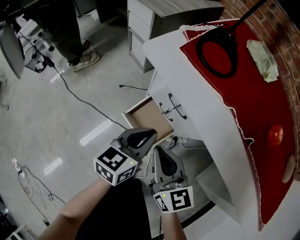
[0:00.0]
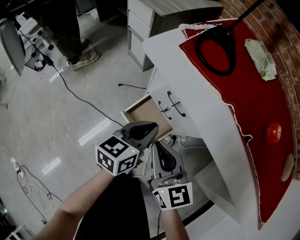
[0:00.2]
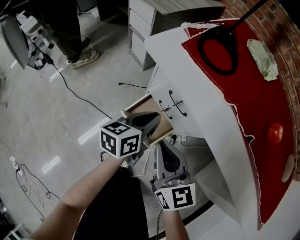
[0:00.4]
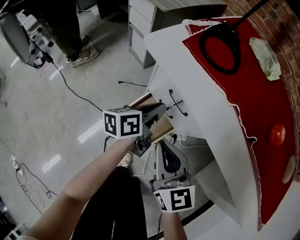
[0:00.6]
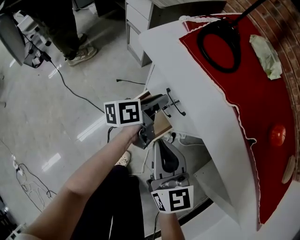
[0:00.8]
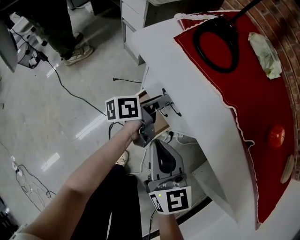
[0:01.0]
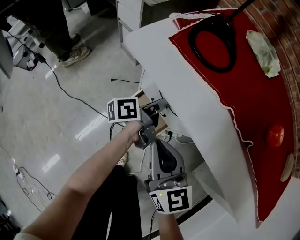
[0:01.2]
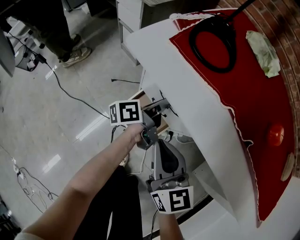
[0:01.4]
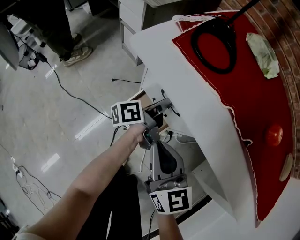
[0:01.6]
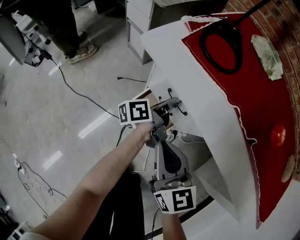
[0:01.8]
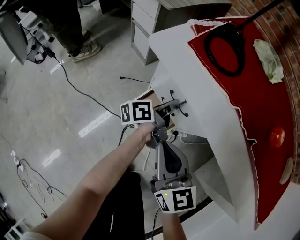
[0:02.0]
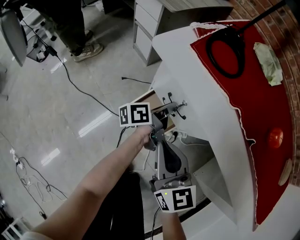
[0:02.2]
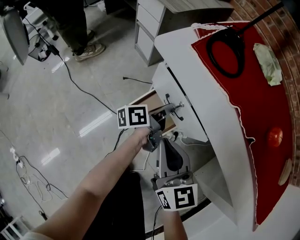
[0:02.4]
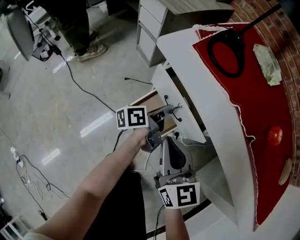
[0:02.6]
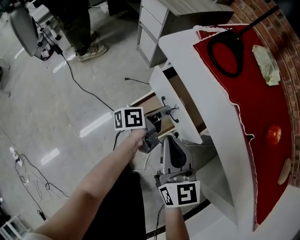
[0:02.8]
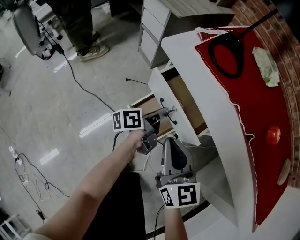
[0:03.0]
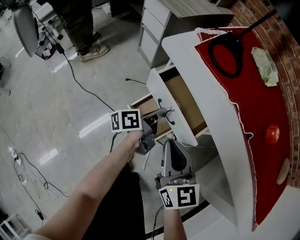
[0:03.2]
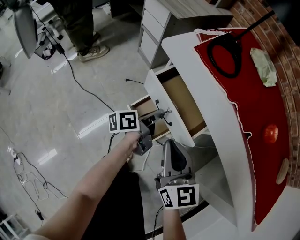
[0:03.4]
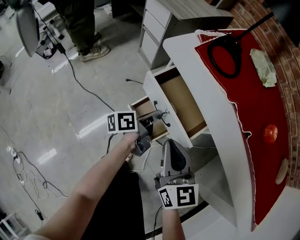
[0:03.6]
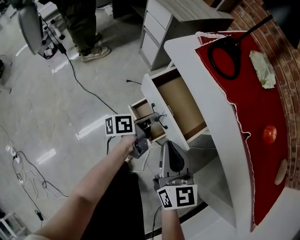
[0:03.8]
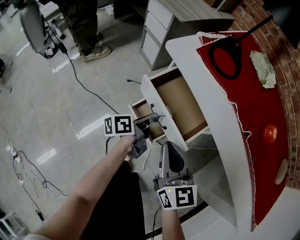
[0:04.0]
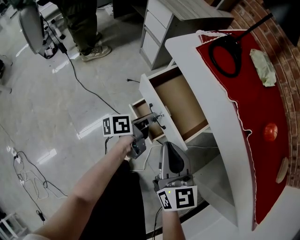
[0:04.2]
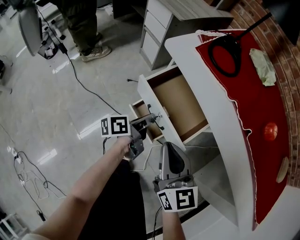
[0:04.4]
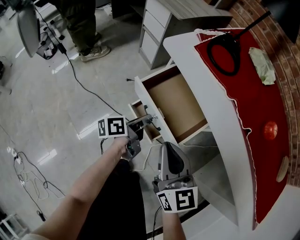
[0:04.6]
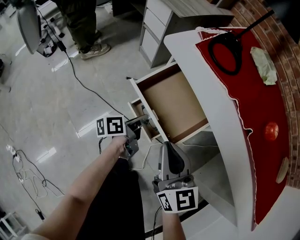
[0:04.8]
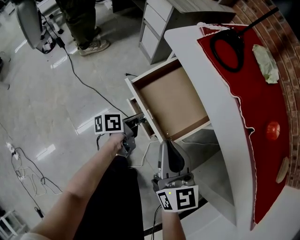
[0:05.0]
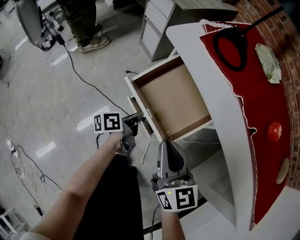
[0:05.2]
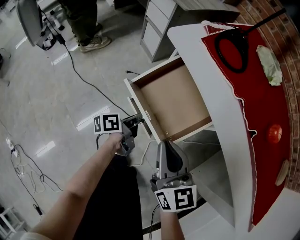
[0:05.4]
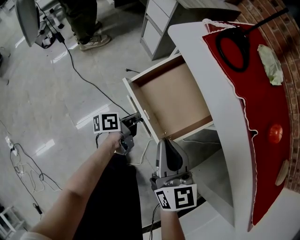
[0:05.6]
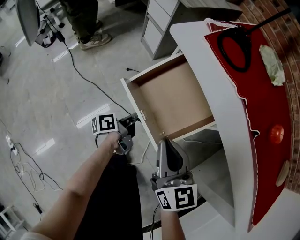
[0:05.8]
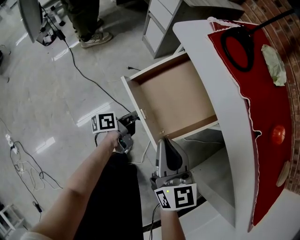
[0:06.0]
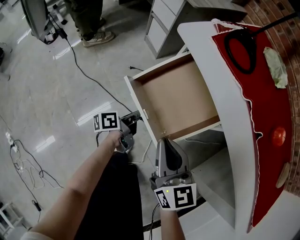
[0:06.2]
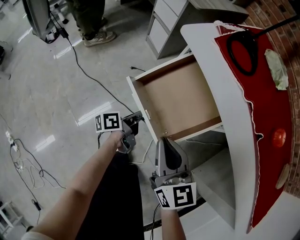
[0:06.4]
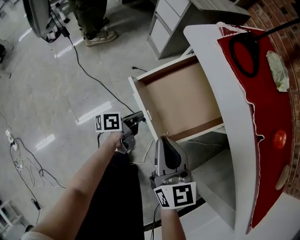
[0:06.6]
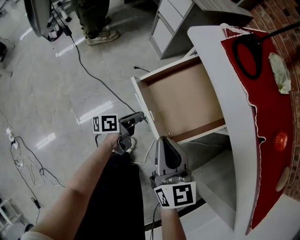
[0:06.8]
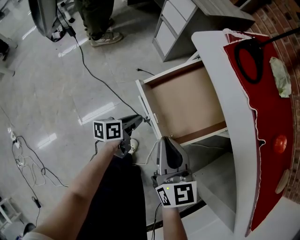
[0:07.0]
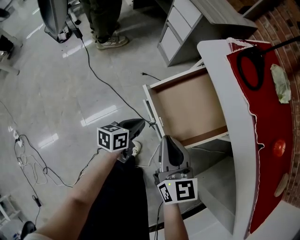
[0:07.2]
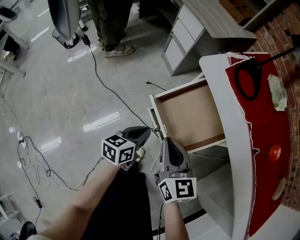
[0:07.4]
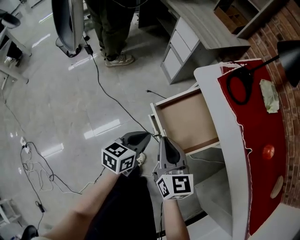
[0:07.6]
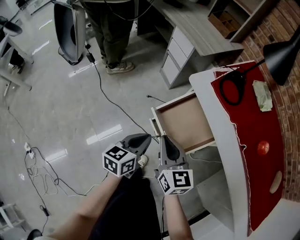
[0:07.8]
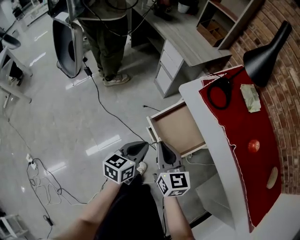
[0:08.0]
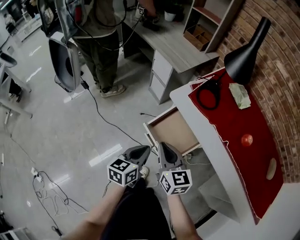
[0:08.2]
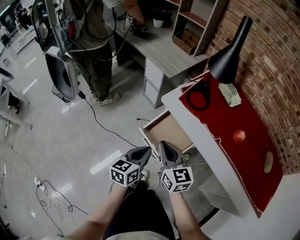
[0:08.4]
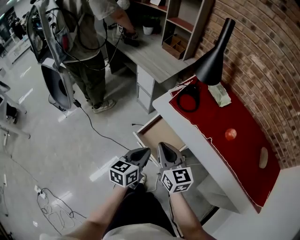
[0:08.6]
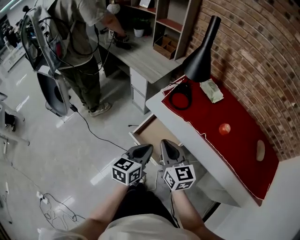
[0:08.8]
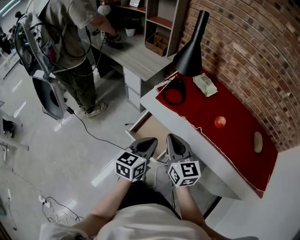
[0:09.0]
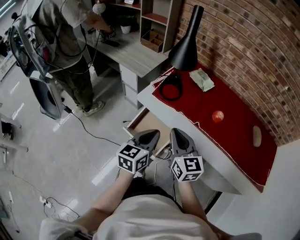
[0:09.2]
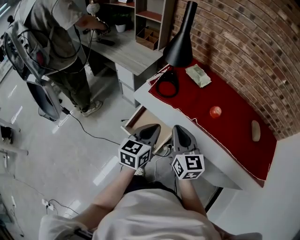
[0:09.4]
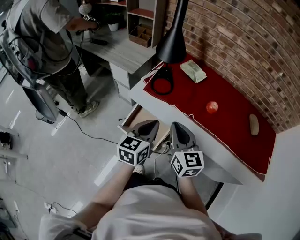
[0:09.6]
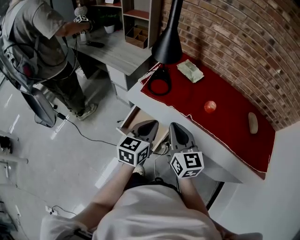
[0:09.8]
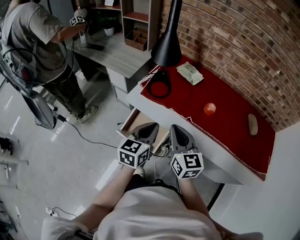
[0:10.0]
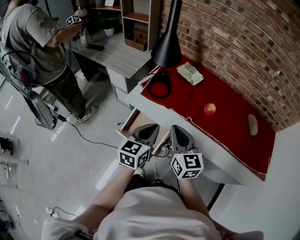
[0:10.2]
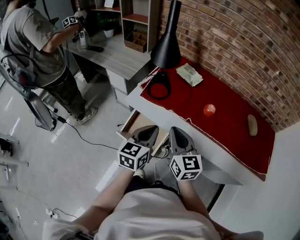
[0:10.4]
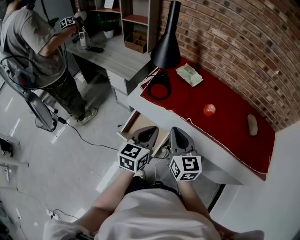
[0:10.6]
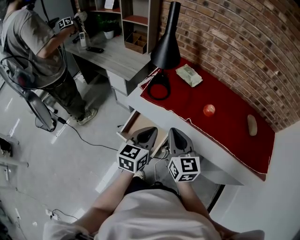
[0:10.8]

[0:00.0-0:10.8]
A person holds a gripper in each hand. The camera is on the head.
0:00.0 to 0:01.6: The left gripper goes about 15 cm forward and downward, rolls counterclockwise, seen from behind, by about 50 degrees, and opens, then closes once more.
0:01.6 to 0:03.0: The left gripper travels backward by approximately 5 cm.
0:03.0 to 0:04.6: The left gripper is displaced backward by approximately 5 cm.
0:04.6 to 0:06.2: The left gripper travels downward by approximately 10 cm.
0:06.2 to 0:07.8: The left gripper moves upward, roughly 20 cm, and twists some 50 degrees clockwise, seen from behind. The right gripper goes roughly 10 cm to the left and upward.
0:07.8 to 0:09.2: The two grippers go about 25 cm upward and to the right. The left gripper turns by about 20 degrees, while the right gripper rotates some 20 degrees.
0:09.2 to 0:10.8: The grippers stay close to where they were, moving slightly.

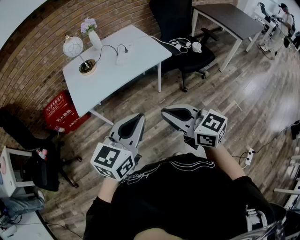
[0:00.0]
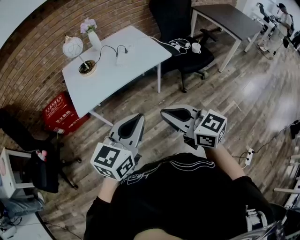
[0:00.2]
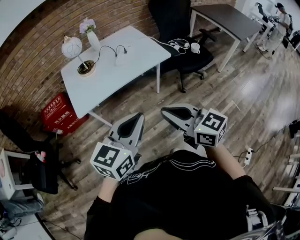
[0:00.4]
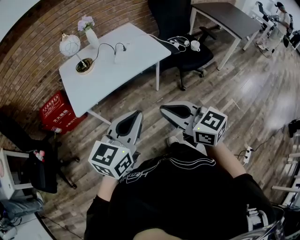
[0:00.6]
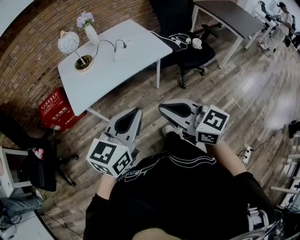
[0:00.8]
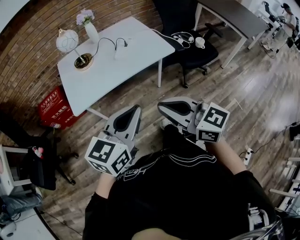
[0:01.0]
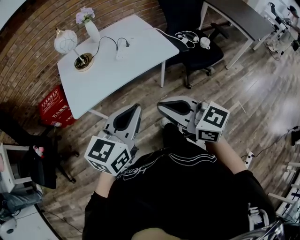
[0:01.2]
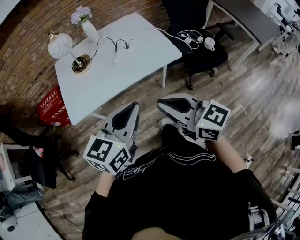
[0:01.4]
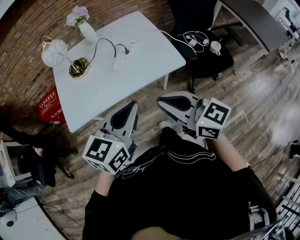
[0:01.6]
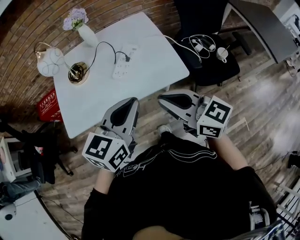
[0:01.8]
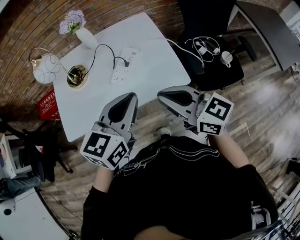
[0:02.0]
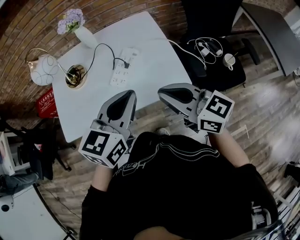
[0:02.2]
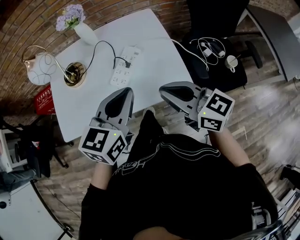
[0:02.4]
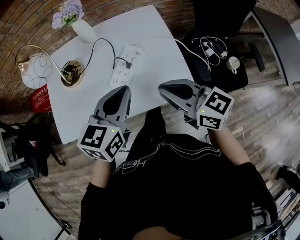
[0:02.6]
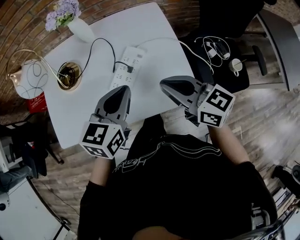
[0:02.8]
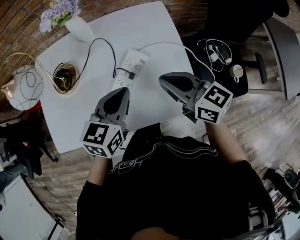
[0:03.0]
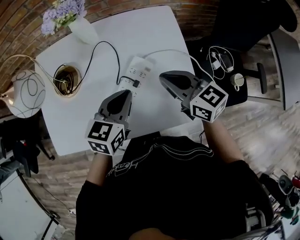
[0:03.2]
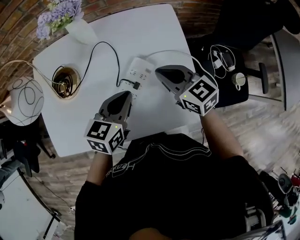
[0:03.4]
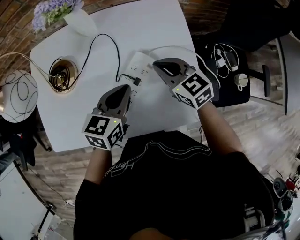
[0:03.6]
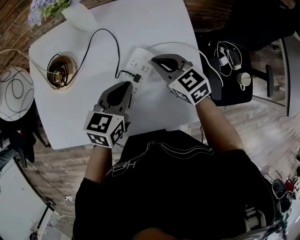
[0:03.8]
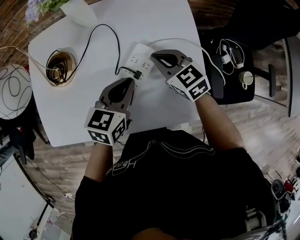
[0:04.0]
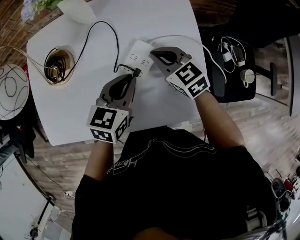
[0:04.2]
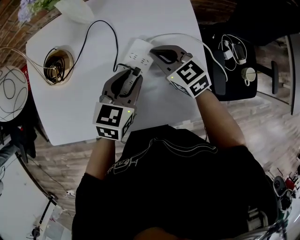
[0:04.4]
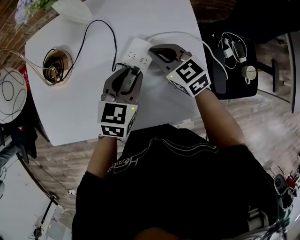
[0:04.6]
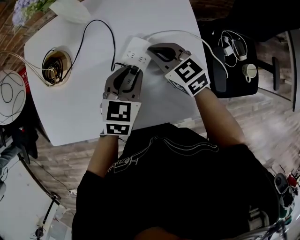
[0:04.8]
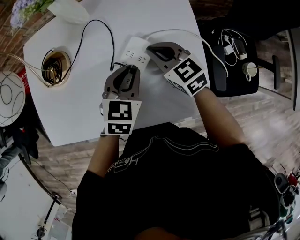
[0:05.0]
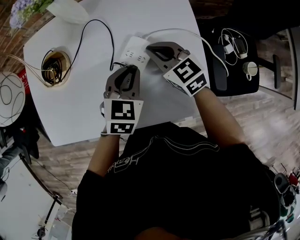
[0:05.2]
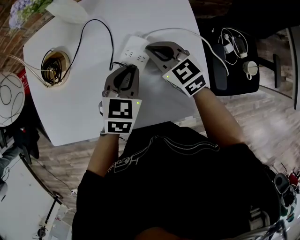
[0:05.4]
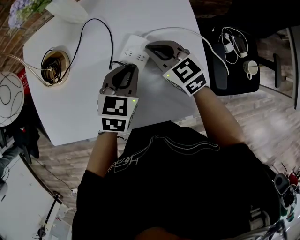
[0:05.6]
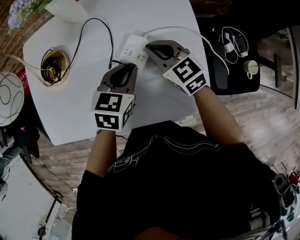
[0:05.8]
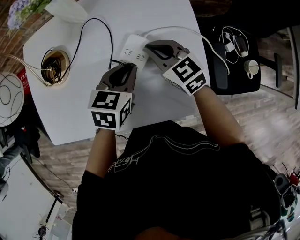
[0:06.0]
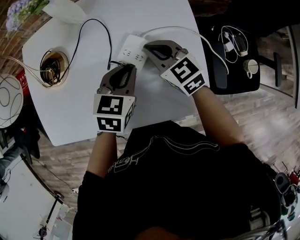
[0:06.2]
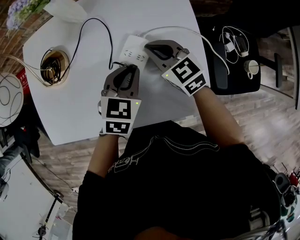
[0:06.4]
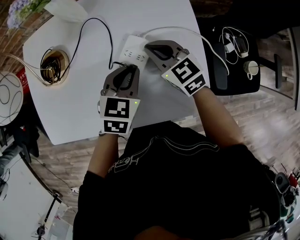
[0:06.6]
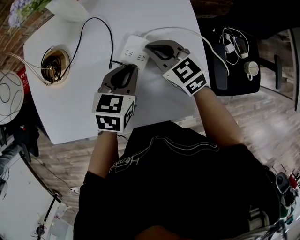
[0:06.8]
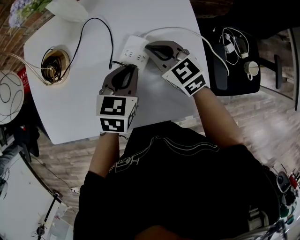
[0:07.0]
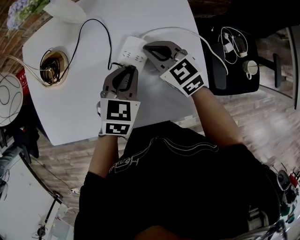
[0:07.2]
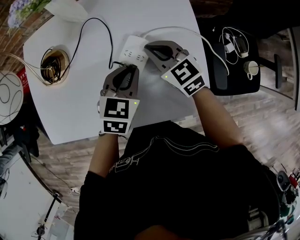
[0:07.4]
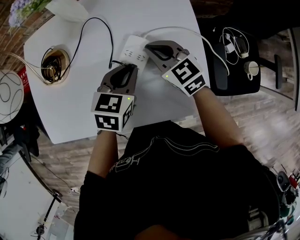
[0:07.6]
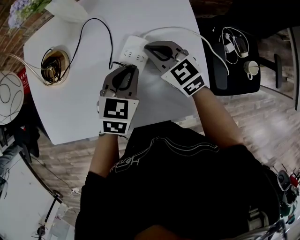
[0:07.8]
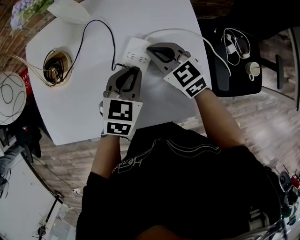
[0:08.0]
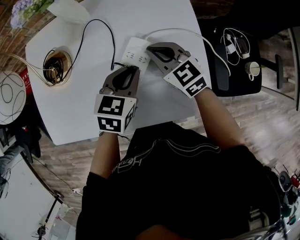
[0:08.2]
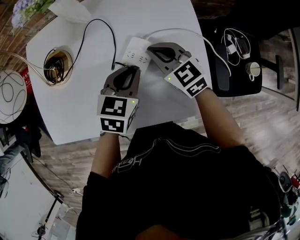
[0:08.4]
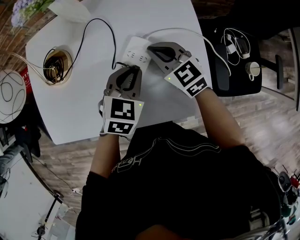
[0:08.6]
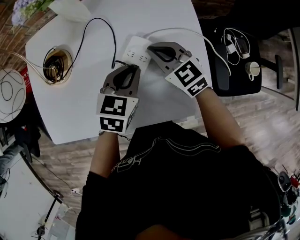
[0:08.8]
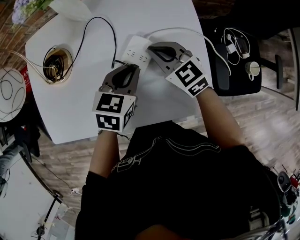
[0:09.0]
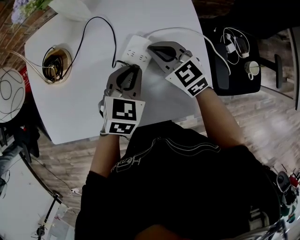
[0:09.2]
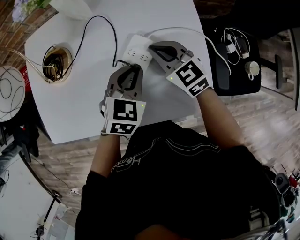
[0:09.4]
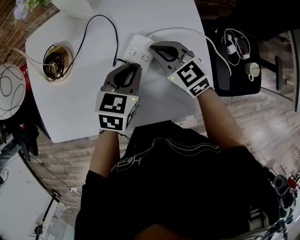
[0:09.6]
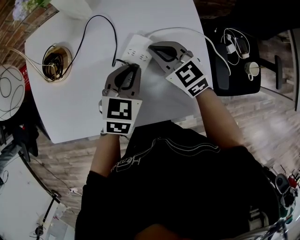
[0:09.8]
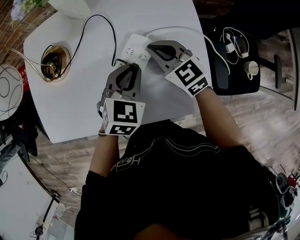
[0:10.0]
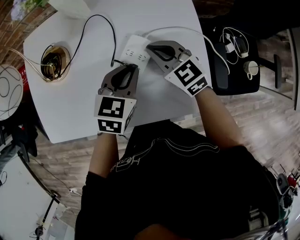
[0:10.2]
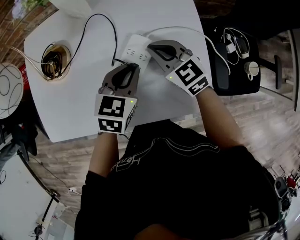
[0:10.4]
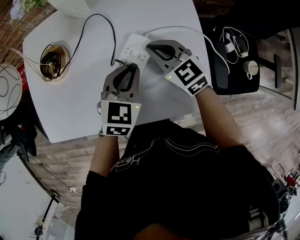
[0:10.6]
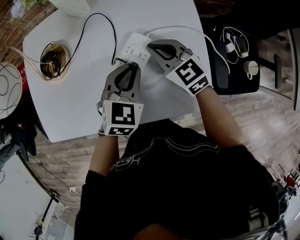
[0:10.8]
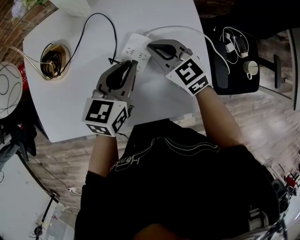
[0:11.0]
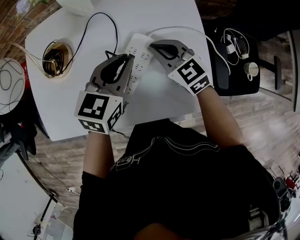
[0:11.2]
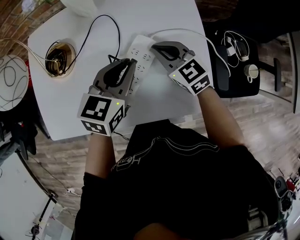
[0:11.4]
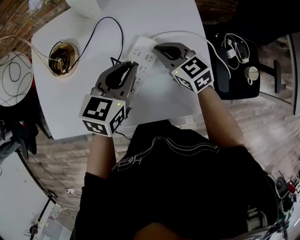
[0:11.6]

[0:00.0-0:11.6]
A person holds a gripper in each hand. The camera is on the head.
0:00.0 to 0:01.4: Both grippers travel together forward, approximately 20 cm.
0:01.4 to 0:02.8: The right gripper shifts roughly 35 cm forward and to the right; the left gripper moves forward, approximately 35 cm, and turns by approximately 20 degrees.
0:02.8 to 0:04.4: The right gripper shifts about 25 cm forward and downward, and rotates approximately 30 degrees; the left gripper is displaced downward and forward by about 15 cm, and opens its fingers.
0:04.4 to 0:10.2: The grippers move only a little.
0:10.2 to 0:11.6: The left gripper heads upward, covering about 5 cm.

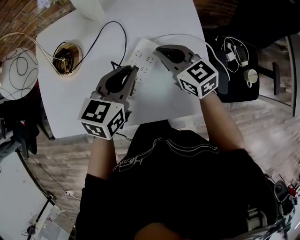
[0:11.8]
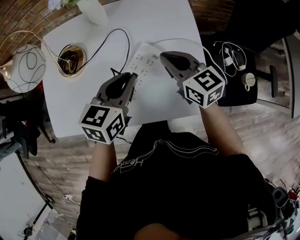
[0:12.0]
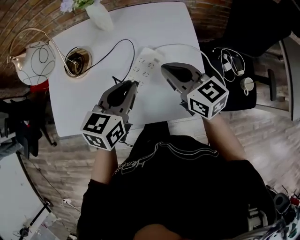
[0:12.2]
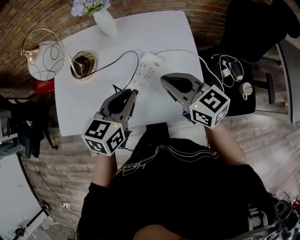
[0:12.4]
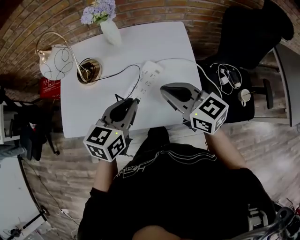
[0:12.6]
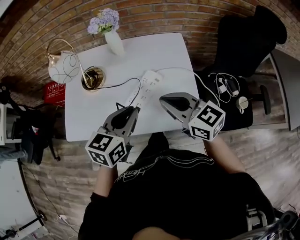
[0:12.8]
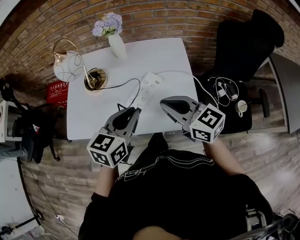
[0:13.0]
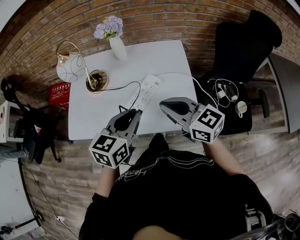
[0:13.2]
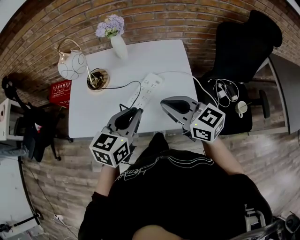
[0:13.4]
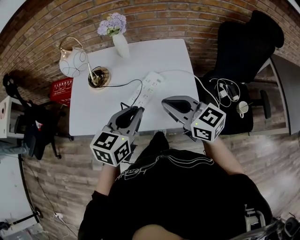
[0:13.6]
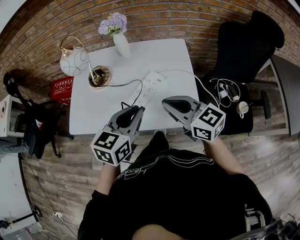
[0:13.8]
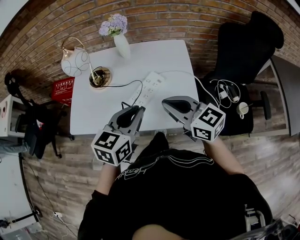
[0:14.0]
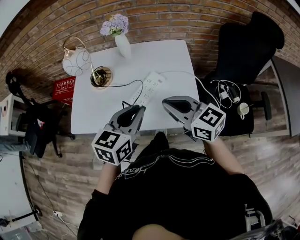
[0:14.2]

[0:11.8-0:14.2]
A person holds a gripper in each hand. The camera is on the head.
0:11.8 to 0:13.0: The left gripper is displaced backward and upward by roughly 20 cm. Meanwhile the right gripper goes roughly 25 cm upward and backward.
0:13.0 to 0:14.2: There are only small adjustments of the grippers.
